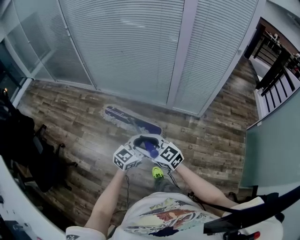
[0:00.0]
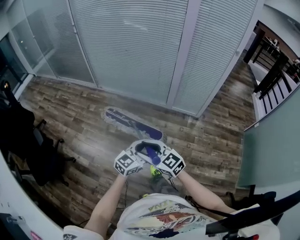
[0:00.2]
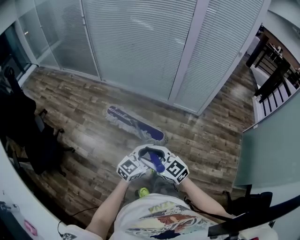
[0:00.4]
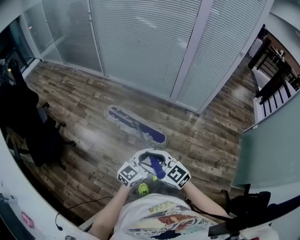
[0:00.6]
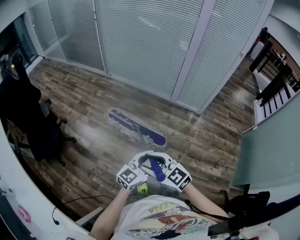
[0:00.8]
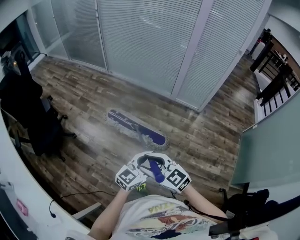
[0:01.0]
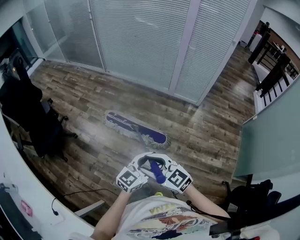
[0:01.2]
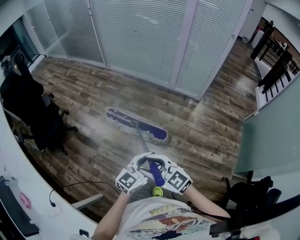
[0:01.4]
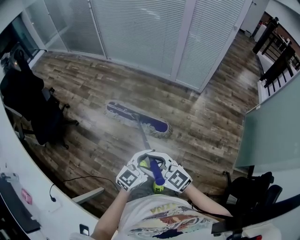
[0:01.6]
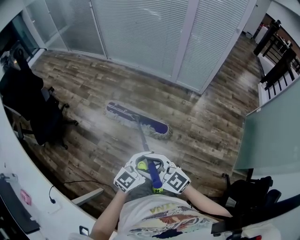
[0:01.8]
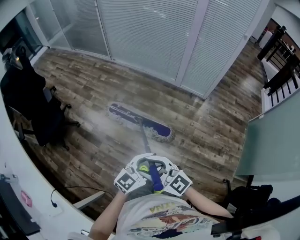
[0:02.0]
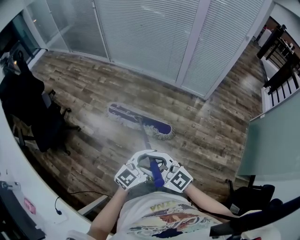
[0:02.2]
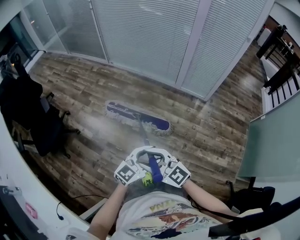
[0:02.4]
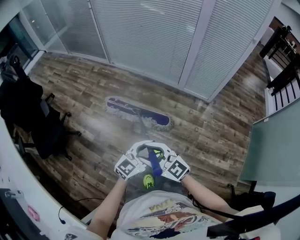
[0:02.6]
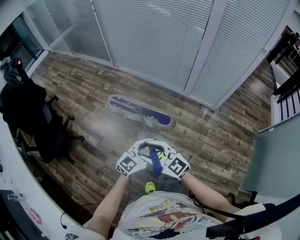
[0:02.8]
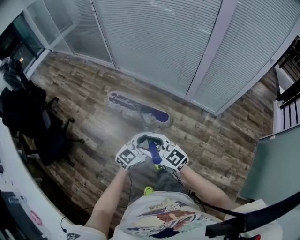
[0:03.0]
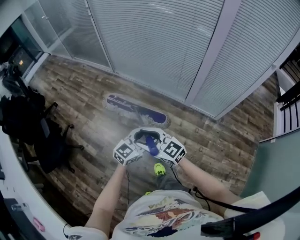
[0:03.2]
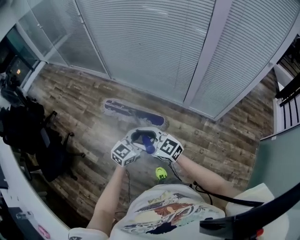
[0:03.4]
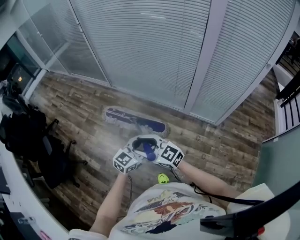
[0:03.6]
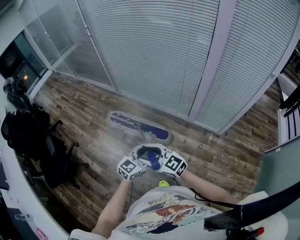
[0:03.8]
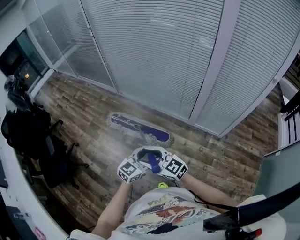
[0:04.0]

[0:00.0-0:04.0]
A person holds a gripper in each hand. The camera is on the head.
0:00.0 to 0:01.4: The pair of grippers is taken backward, about 50 cm.
0:01.4 to 0:02.6: The two grippers go about 25 cm forward.
0:02.6 to 0:04.0: The grippers both shift forward by approximately 35 cm.

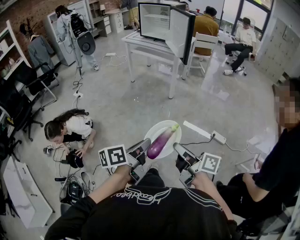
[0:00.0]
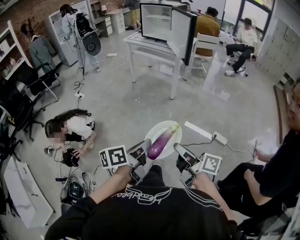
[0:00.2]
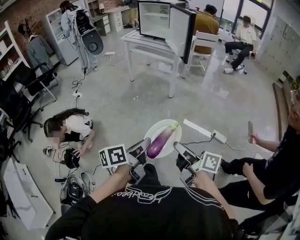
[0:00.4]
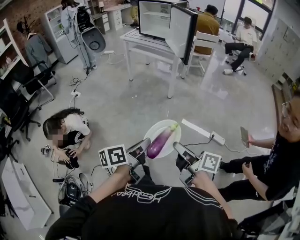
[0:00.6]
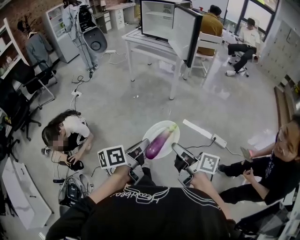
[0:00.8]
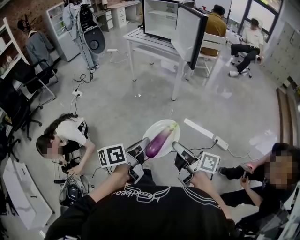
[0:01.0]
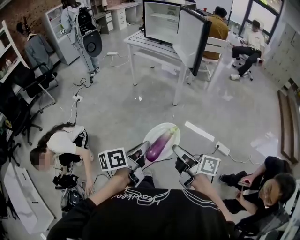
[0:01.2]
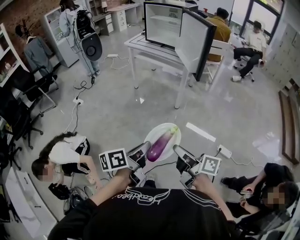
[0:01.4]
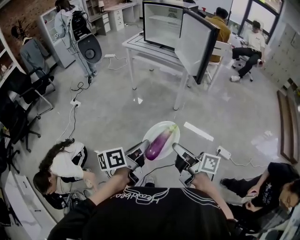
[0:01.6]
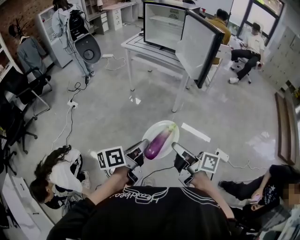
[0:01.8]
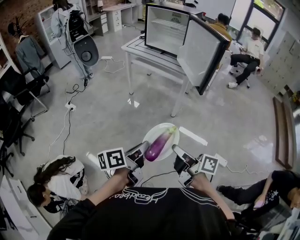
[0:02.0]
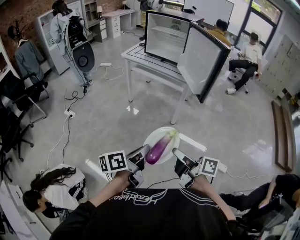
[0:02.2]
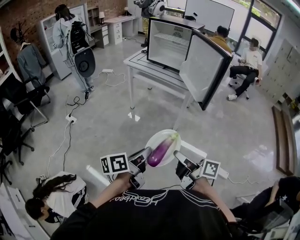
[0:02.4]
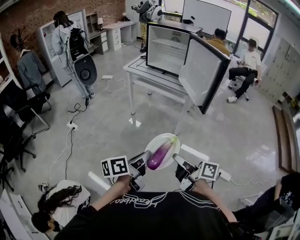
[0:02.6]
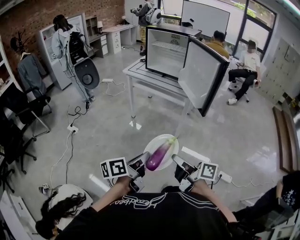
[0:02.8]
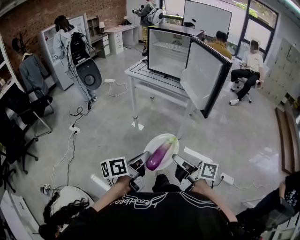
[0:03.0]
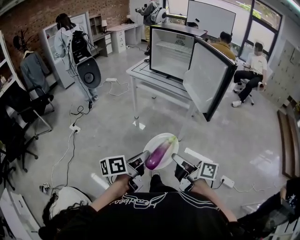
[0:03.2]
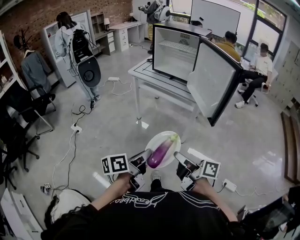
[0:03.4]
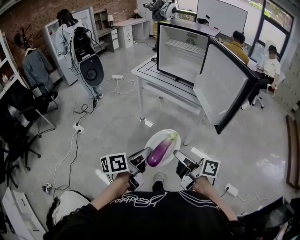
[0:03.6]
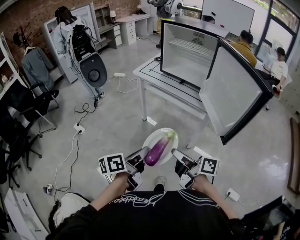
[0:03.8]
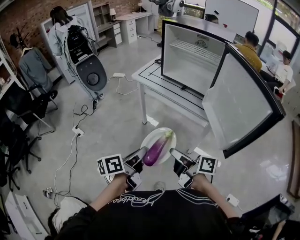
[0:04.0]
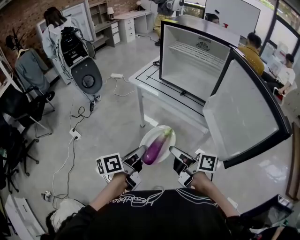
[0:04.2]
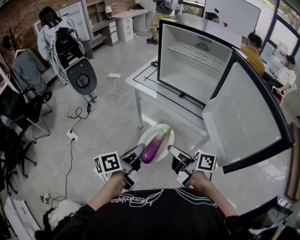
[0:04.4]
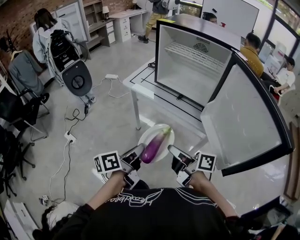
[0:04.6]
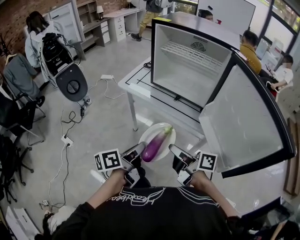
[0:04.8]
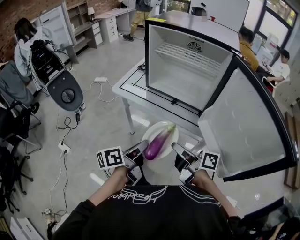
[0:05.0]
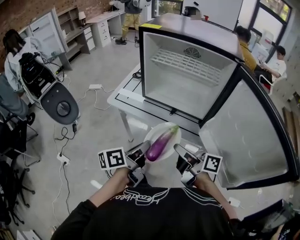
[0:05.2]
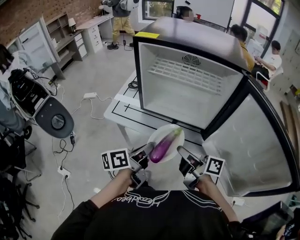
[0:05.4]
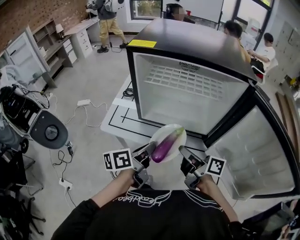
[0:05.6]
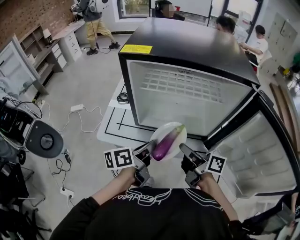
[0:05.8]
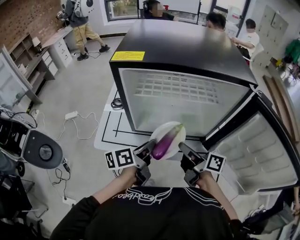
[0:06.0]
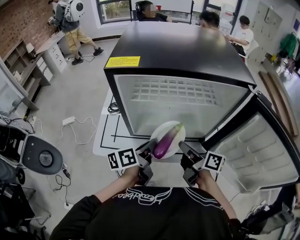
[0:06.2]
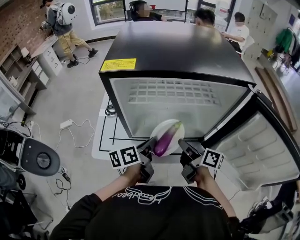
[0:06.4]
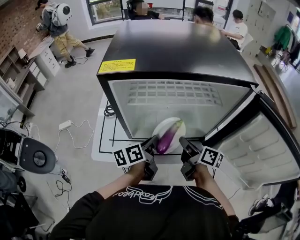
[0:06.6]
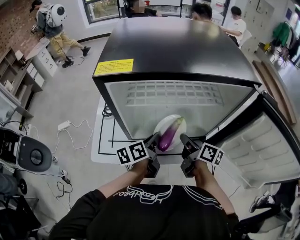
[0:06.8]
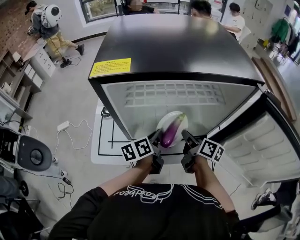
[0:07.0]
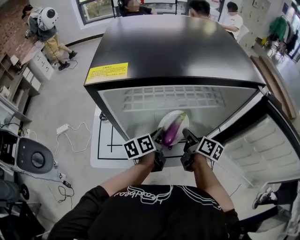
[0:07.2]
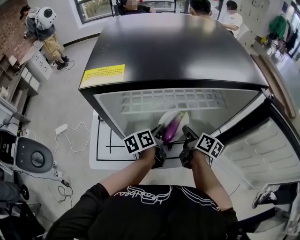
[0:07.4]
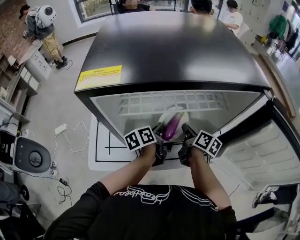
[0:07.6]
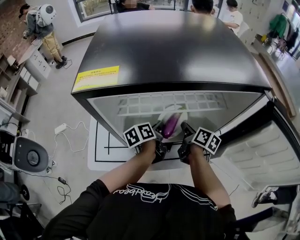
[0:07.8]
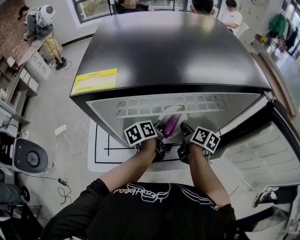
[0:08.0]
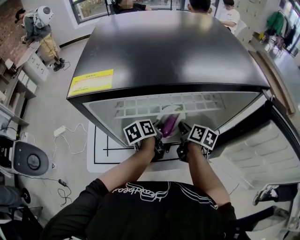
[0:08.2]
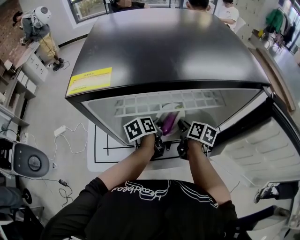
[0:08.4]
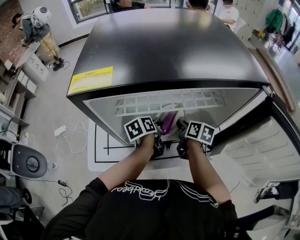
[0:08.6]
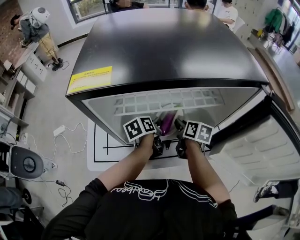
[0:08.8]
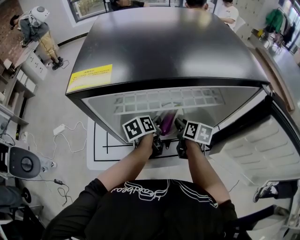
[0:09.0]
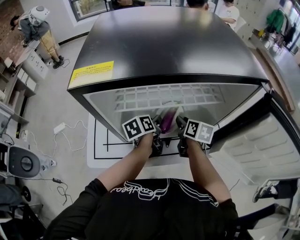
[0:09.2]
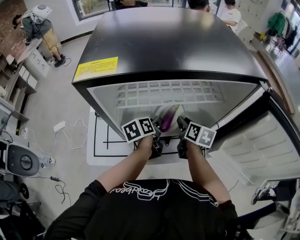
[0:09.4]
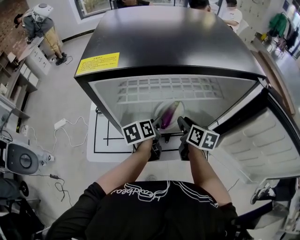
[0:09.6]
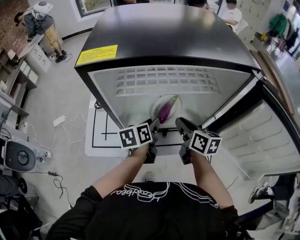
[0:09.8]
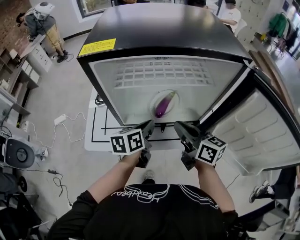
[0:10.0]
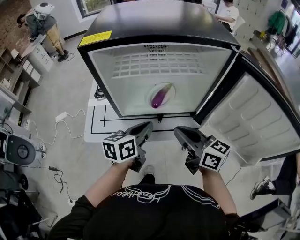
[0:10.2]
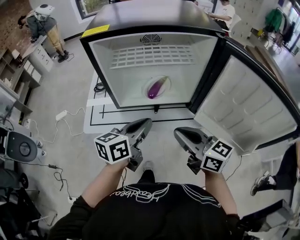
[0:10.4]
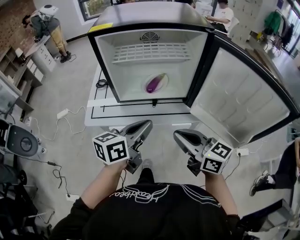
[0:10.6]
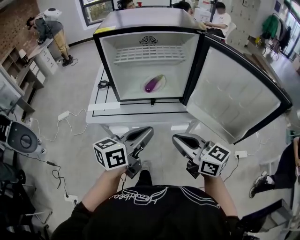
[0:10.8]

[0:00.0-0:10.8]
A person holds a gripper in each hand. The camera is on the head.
0:00.0 to 0:01.6: The two grippers go about 25 cm forward.
0:01.6 to 0:03.0: Both grippers travel together forward, about 15 cm.
0:03.0 to 0:04.6: Both grippers are carried forward, about 50 cm.
0:04.6 to 0:06.2: The right gripper shifts by some 35 cm, and changes its angle by approximately 40 degrees, while the left gripper moves about 40 cm, and rotates roughly 30 degrees.
0:06.2 to 0:07.8: Both grippers travel together forward and downward, approximately 20 cm. The right gripper turns by approximately 30 degrees.
0:07.8 to 0:09.2: The right gripper rotates approximately 20 degrees, and opens. Meanwhile the left gripper opens its fingers.
0:09.2 to 0:10.8: Both grippers travel together backward and upward, about 40 cm. The left gripper tilts its fingers some 30 degrees upward, and closes up. The right gripper points its fingers roughly 30 degrees further upward, and closes.

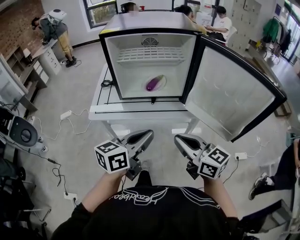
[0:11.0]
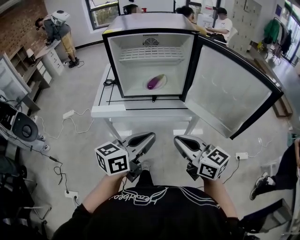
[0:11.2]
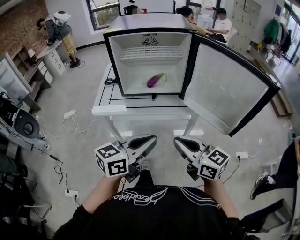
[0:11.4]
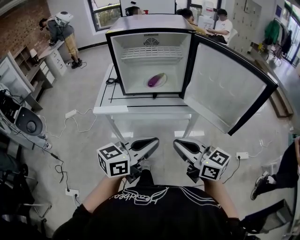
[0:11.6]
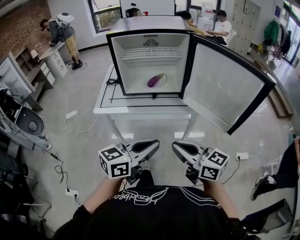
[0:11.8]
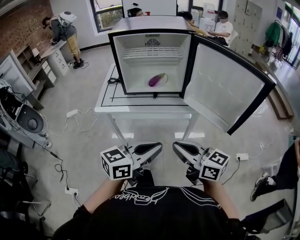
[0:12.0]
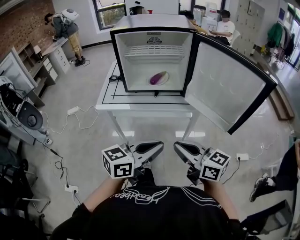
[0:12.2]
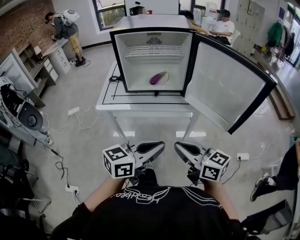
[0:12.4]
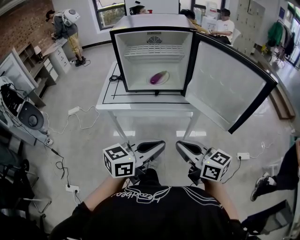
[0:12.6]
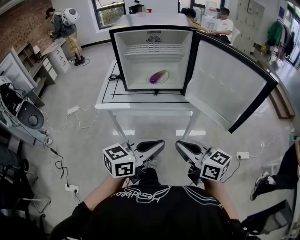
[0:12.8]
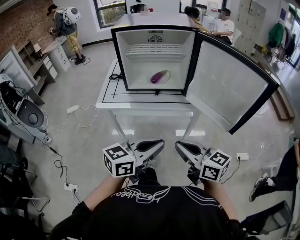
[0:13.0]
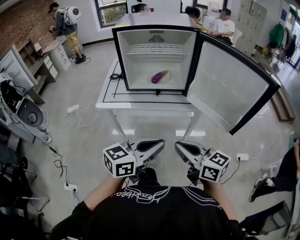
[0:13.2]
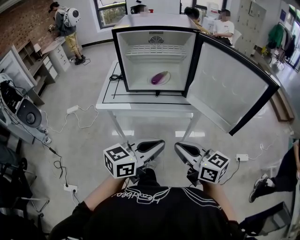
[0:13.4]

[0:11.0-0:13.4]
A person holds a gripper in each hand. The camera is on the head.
0:11.0 to 0:12.2: The grippers both shift backward by approximately 10 cm.
0:12.2 to 0:13.4: The grippers move only a little.

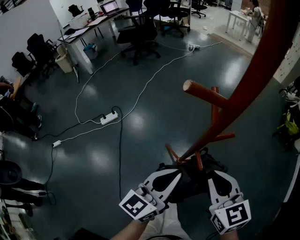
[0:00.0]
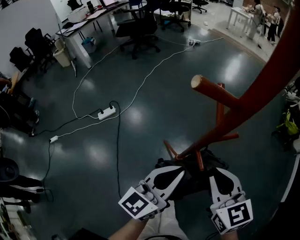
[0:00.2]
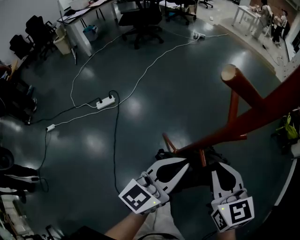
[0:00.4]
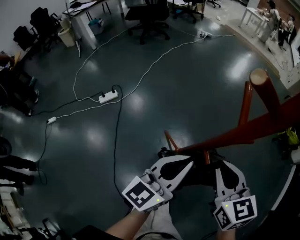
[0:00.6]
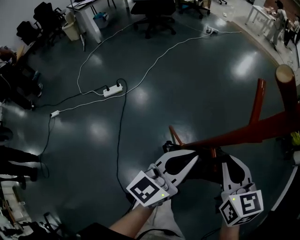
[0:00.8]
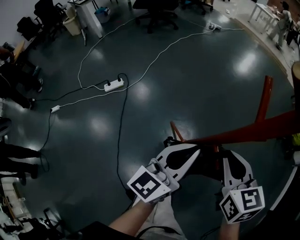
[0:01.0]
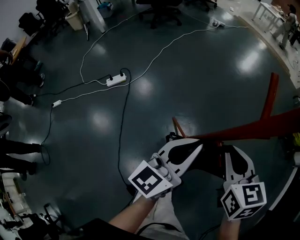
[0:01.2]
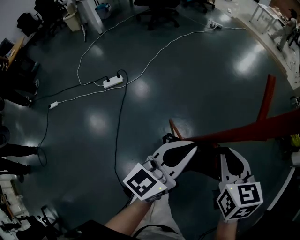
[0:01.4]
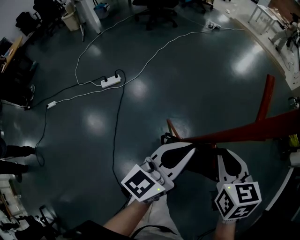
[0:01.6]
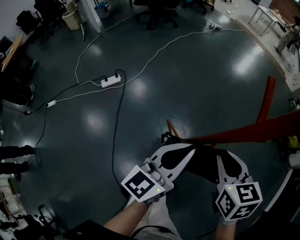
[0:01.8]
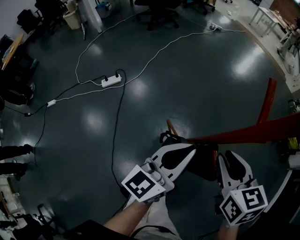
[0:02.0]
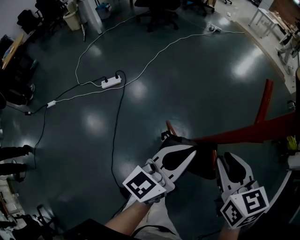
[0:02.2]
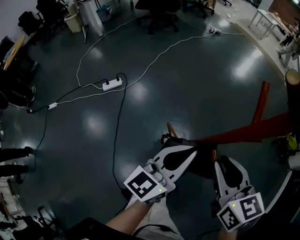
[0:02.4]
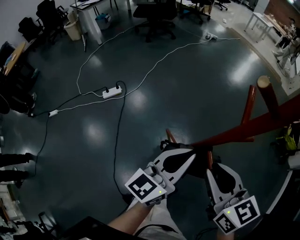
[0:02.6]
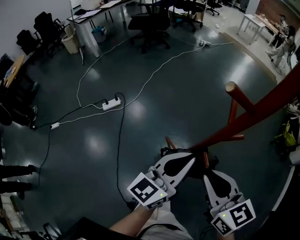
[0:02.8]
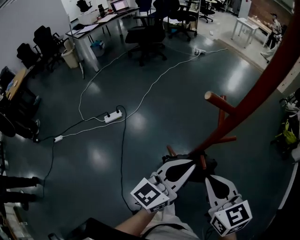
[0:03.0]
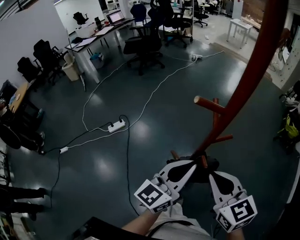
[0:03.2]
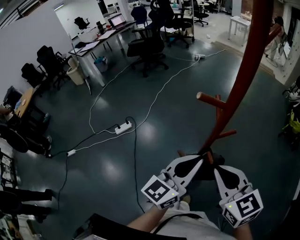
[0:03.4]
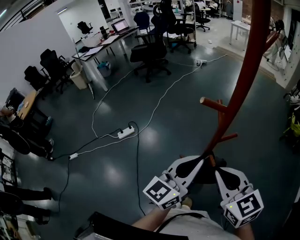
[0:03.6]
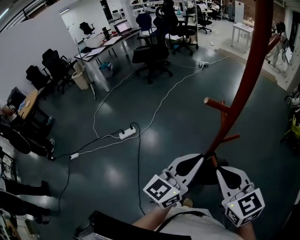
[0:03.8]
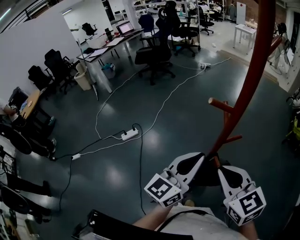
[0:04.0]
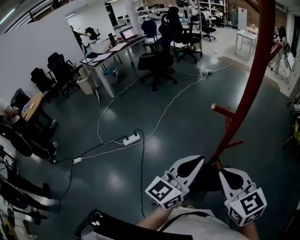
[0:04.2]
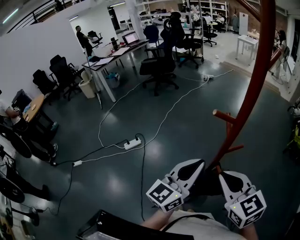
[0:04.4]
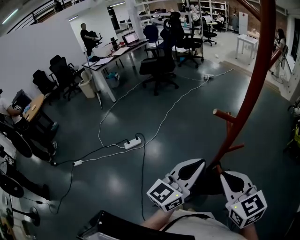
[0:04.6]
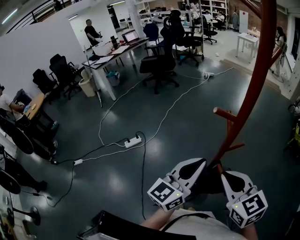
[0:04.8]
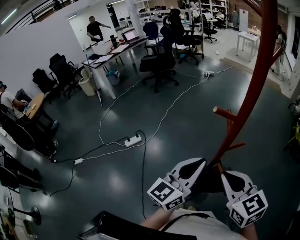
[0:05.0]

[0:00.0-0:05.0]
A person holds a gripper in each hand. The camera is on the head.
0:00.0 to 0:01.6: The left gripper goes about 5 cm forward, while the right gripper is displaced downward and forward by some 10 cm.
0:01.6 to 0:03.4: The left gripper shifts approximately 15 cm upward, while the right gripper heads upward and backward, covering about 20 cm, and swivels roughly 20 degrees.
0:03.4 to 0:05.0: The grippers move only a little.
